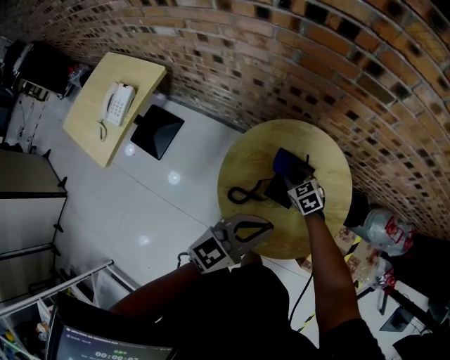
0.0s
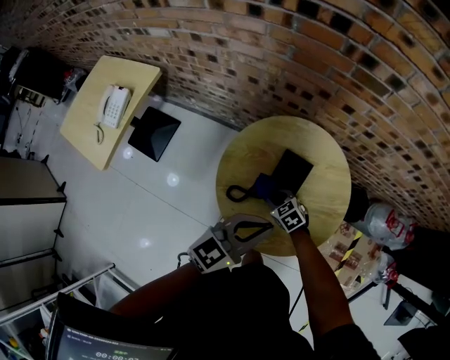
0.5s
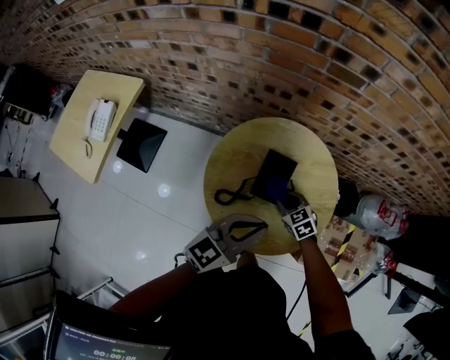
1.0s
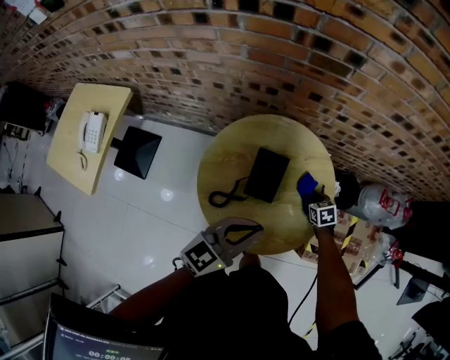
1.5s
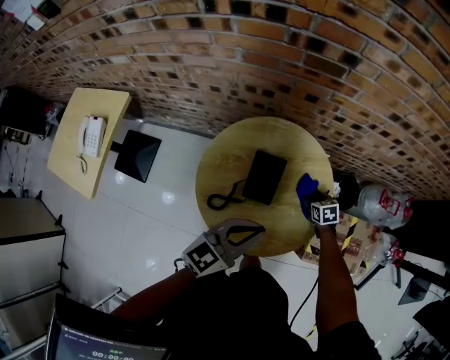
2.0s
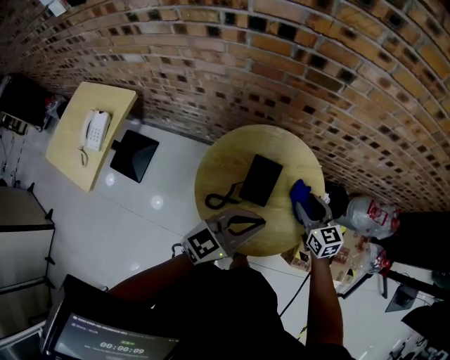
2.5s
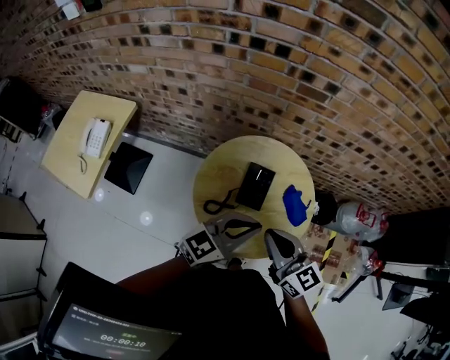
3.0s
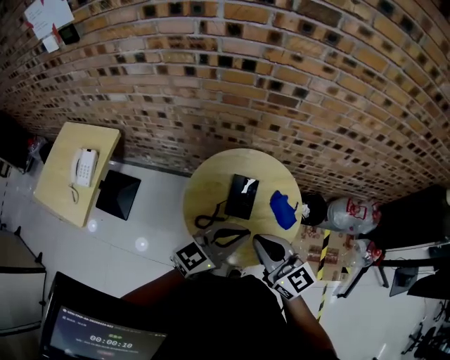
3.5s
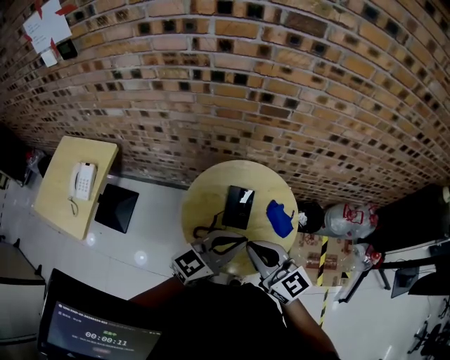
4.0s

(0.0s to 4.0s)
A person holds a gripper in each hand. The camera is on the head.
0.0s - 2.0s: The right gripper shifts approximately 25 cm to the right, turns by approximately 40 degrees, and opens. The left gripper goes some 5 cm to the right.
2.0s - 4.0s: The left gripper heads upward, covering approximately 10 cm. Meanwhile the right gripper is displaced upward, backward and to the left by some 50 cm, tips its fingers upward by some 50 degrees, and closes.

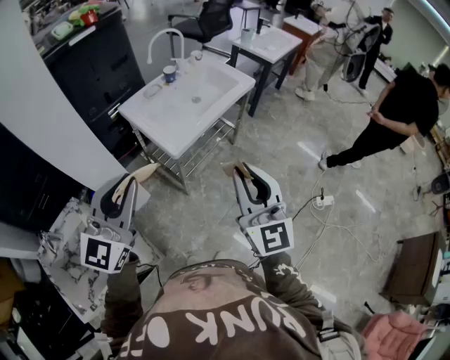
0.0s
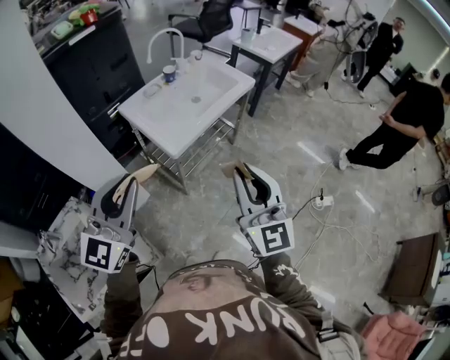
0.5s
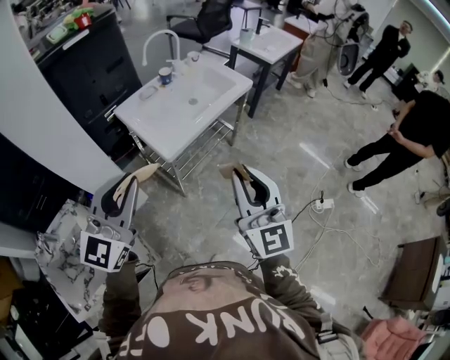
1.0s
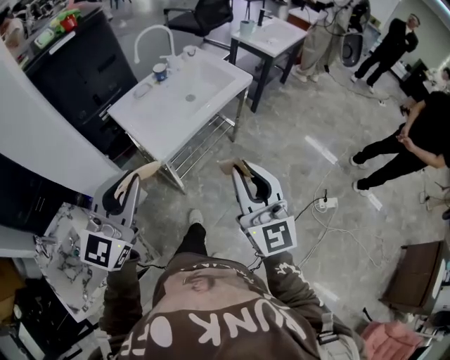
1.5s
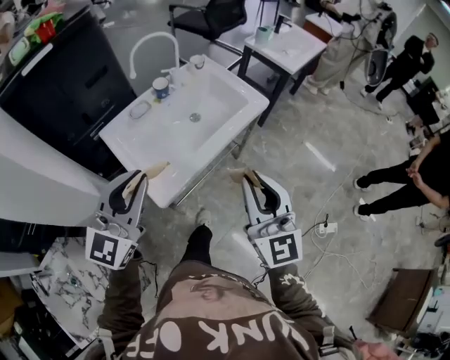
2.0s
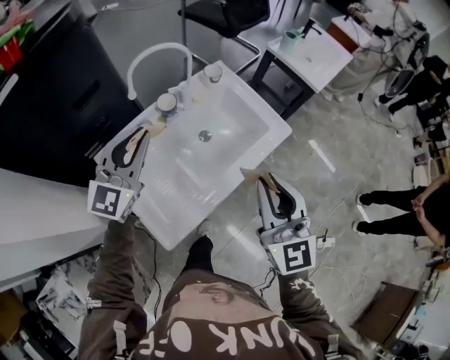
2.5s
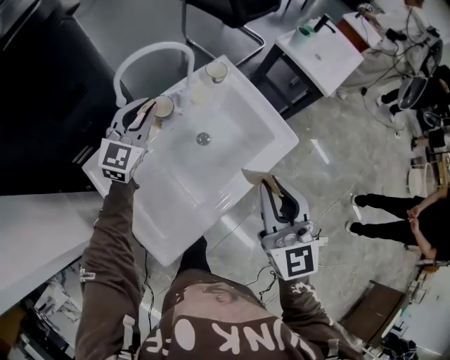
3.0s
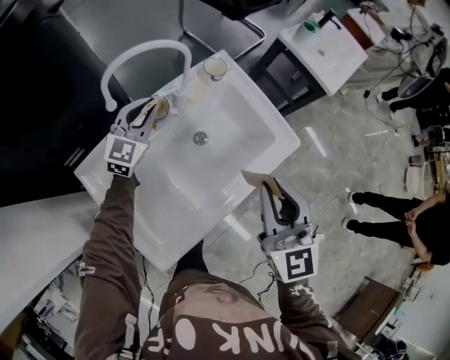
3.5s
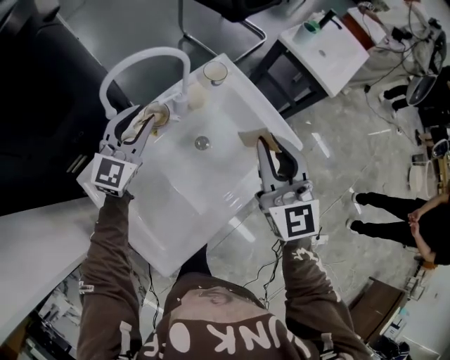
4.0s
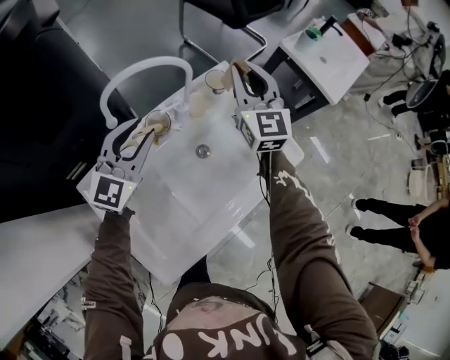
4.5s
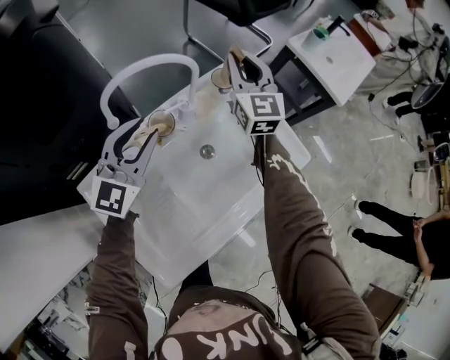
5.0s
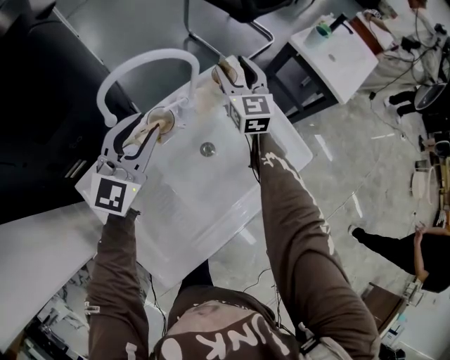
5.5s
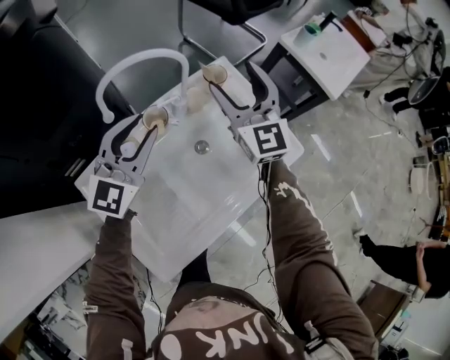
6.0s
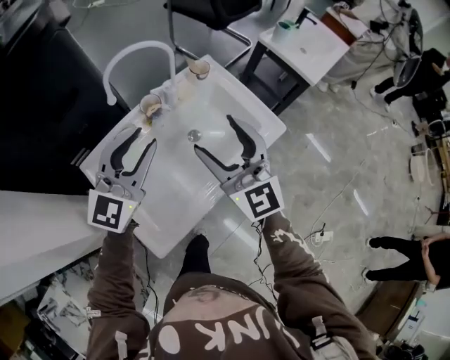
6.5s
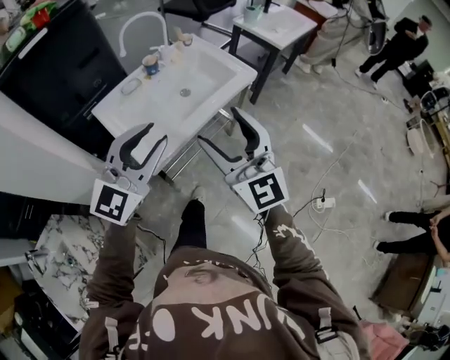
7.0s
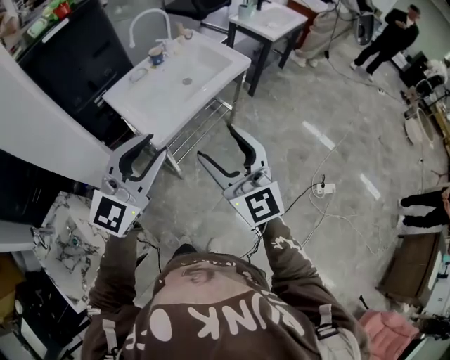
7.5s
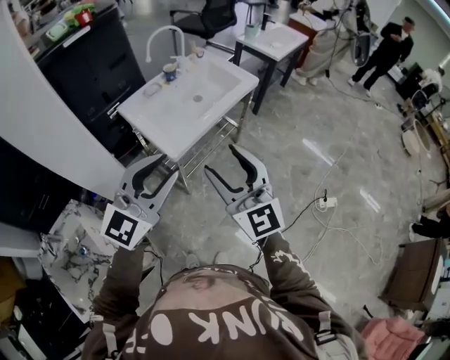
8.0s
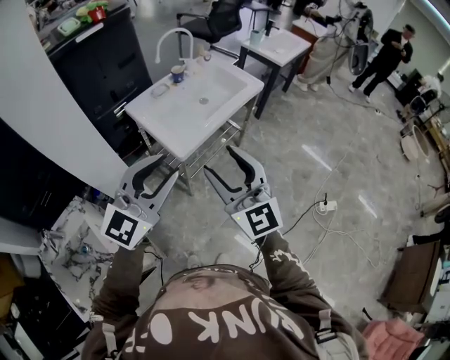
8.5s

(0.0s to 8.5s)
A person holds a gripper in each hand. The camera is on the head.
0.0s - 2.0s: Both grippers travel together forward, about 30 cm.
2.0s - 4.0s: The two grippers travel together, forward, some 40 cm.
4.0s - 6.5s: The right gripper moves to the left, about 5 cm, moves approximately 25 cm forward and comes back, and opens its fingers. Meanwhile the left gripper moves backward and upward, approximately 20 cm.
6.5s - 8.5s: Both grippers are carried backward, approximately 50 cm.

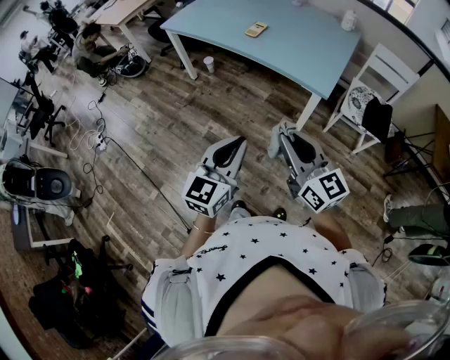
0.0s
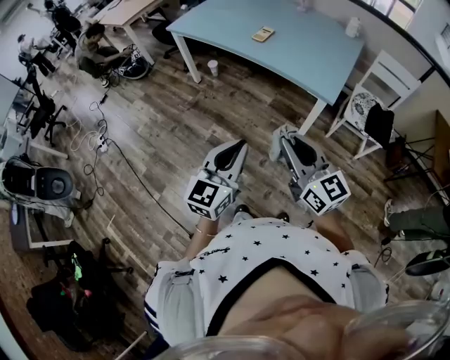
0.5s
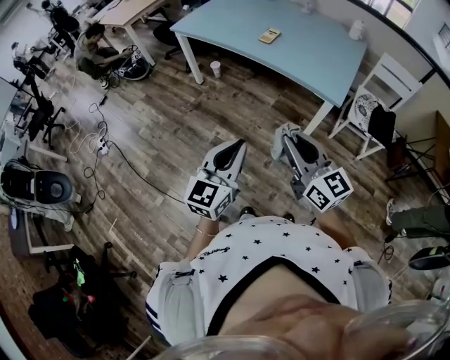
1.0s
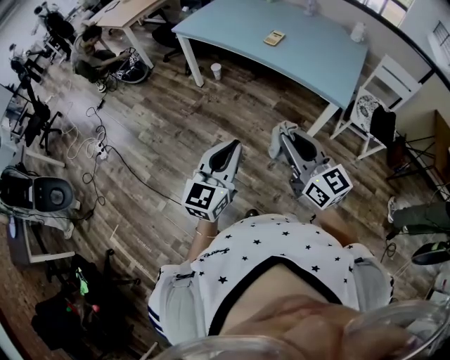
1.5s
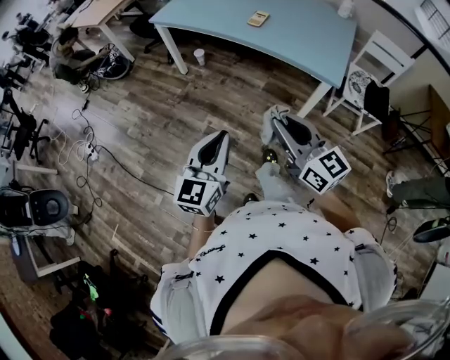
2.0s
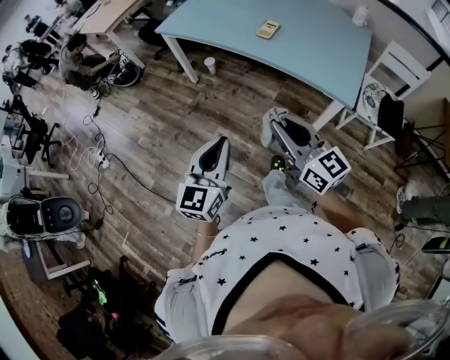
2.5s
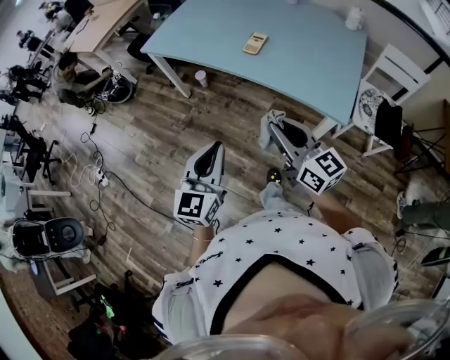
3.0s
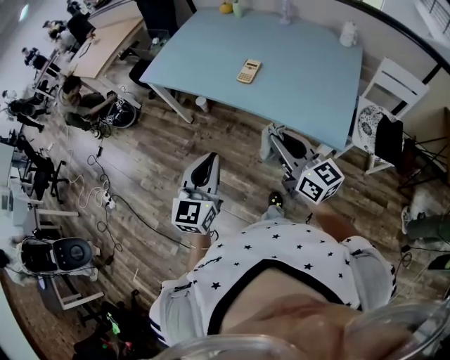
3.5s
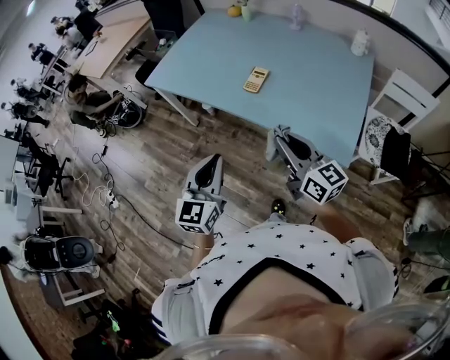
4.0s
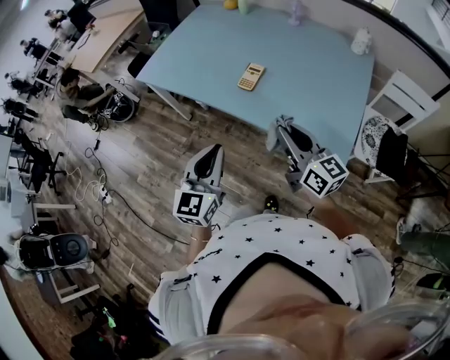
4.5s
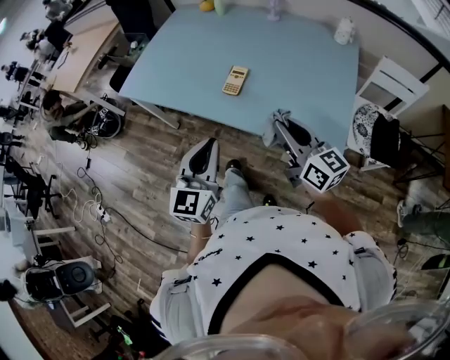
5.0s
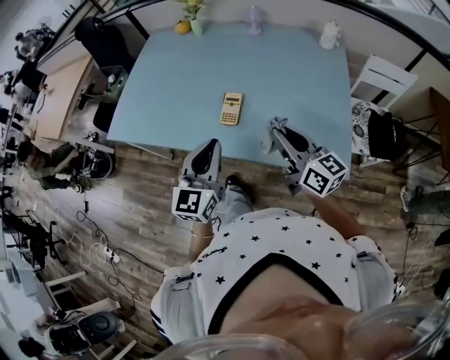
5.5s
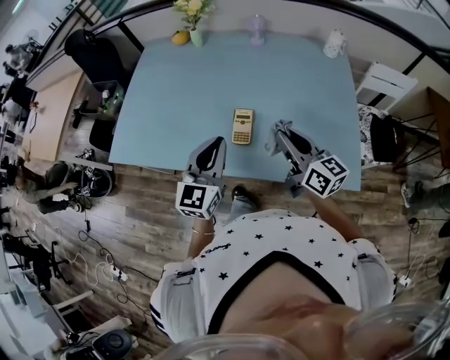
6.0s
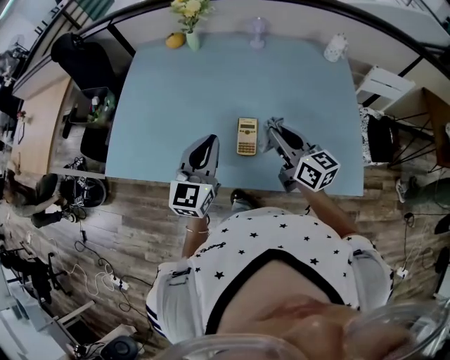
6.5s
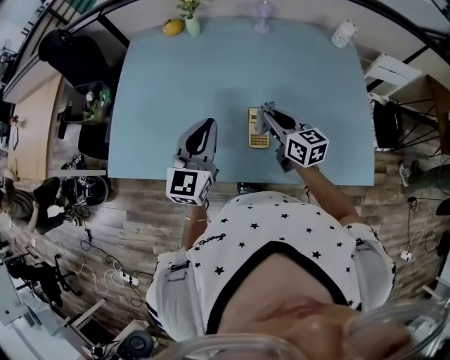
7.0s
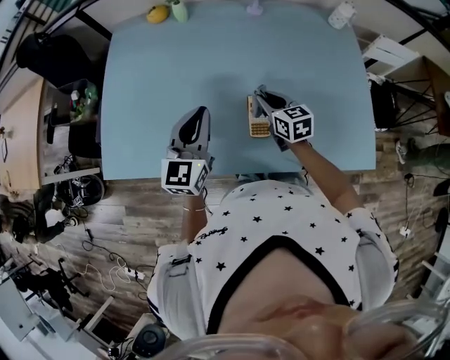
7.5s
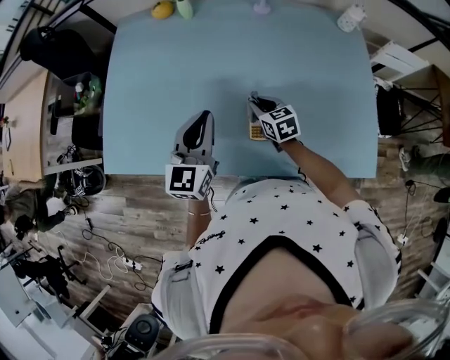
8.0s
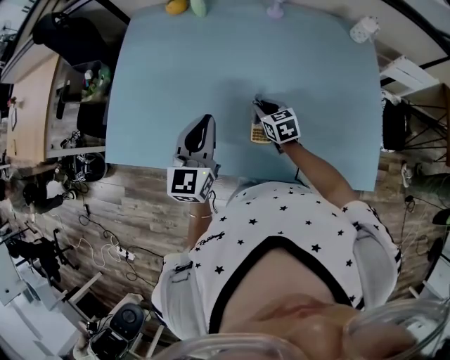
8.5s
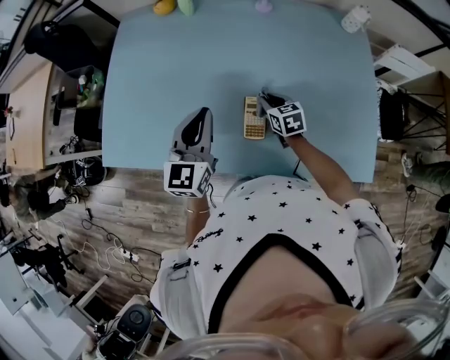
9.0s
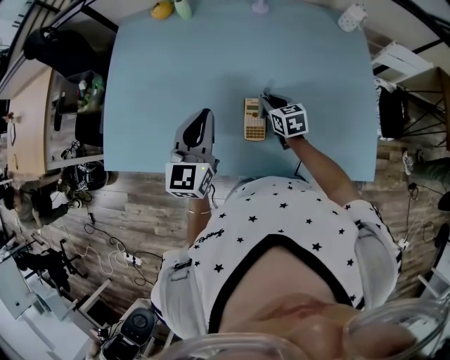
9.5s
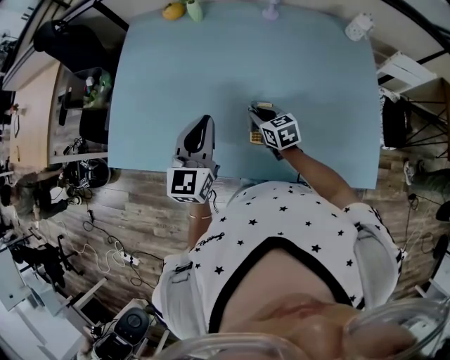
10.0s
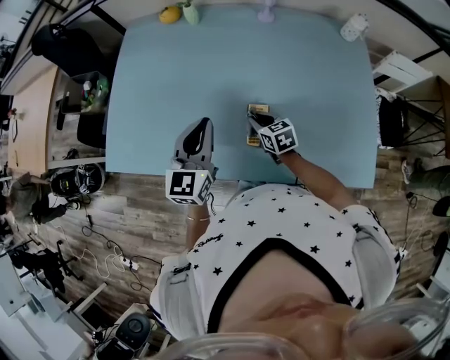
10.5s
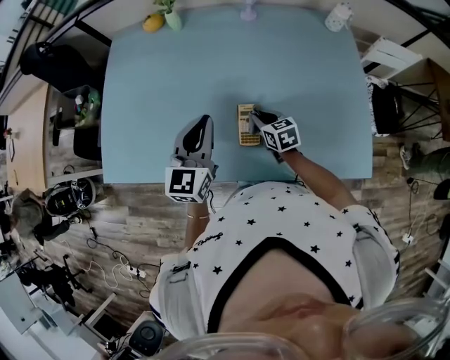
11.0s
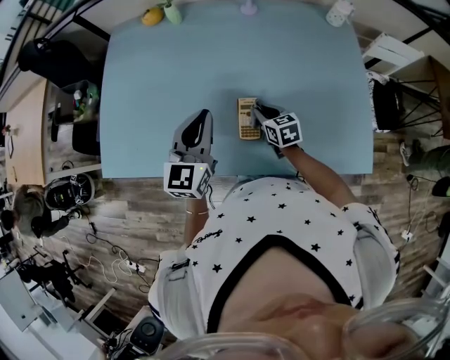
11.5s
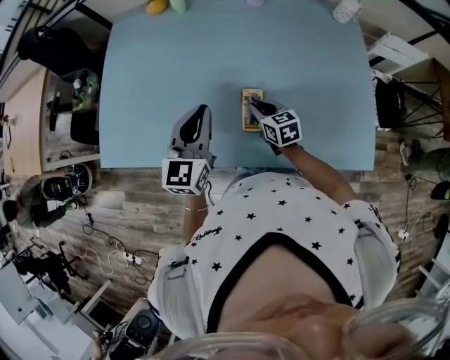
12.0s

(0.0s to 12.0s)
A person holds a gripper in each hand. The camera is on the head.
0.0s - 2.0s: The two grippers go roughly 15 cm to the left.
2.0s - 4.0s: The right gripper travels forward and to the right by roughly 35 cm; the left gripper travels forward by some 30 cm.
4.0s - 6.0s: The grippers both shift forward by roughly 30 cm. The right gripper rotates some 20 degrees; the left gripper changes its angle by about 20 degrees.
6.0s - 8.0s: The right gripper goes some 30 cm downward, forward and to the left, and points its fingers some 40 degrees further downward. The left gripper goes roughly 15 cm forward and to the left.

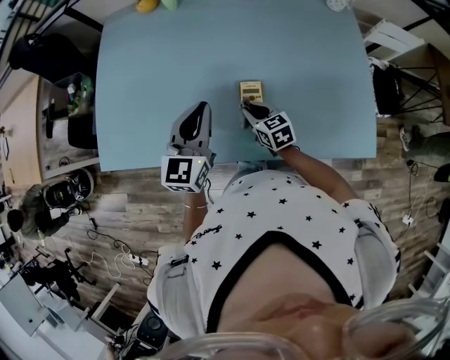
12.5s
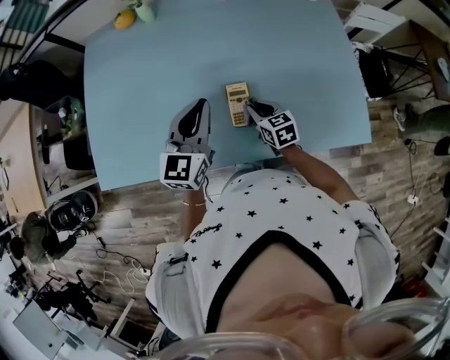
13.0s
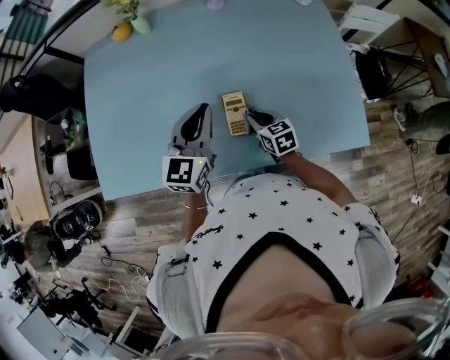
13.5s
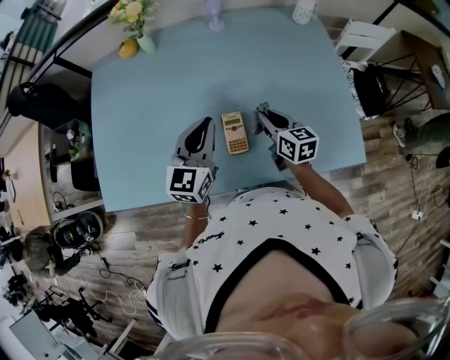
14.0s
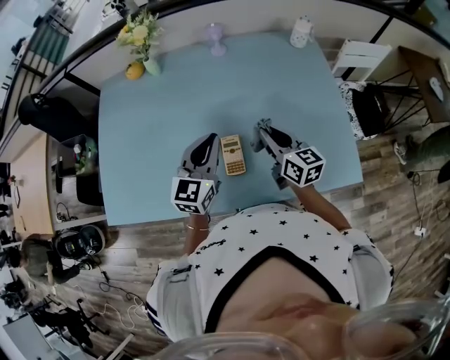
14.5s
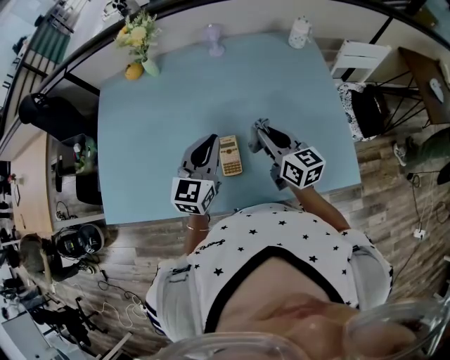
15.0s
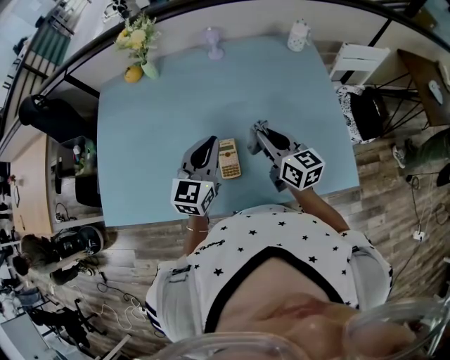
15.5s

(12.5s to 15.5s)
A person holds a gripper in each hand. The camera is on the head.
12.5s - 14.0s: The left gripper moves to the right, some 10 cm; the right gripper heads to the right and upward, covering roughly 15 cm, and turns by approximately 30 degrees.
14.0s - 15.5s: The right gripper is displaced upward by approximately 10 cm.
